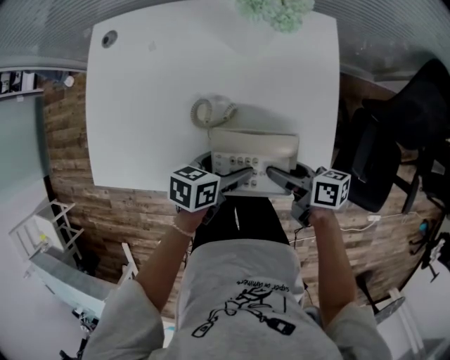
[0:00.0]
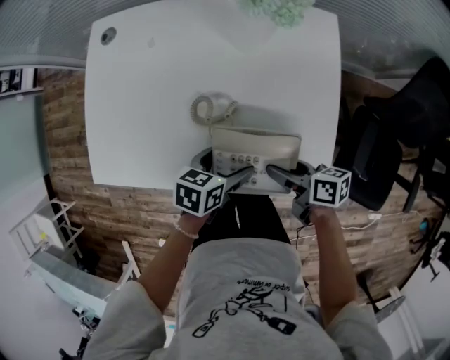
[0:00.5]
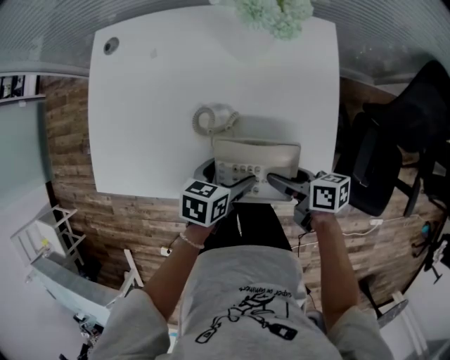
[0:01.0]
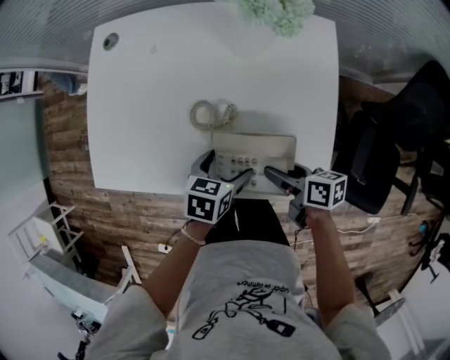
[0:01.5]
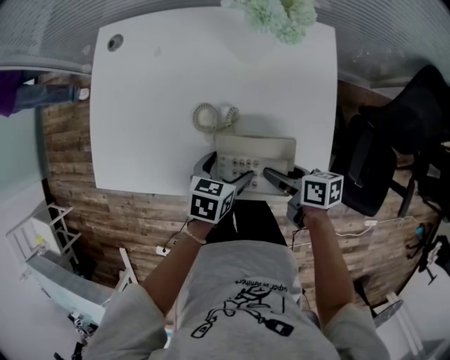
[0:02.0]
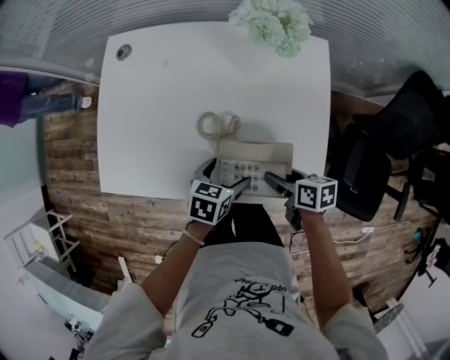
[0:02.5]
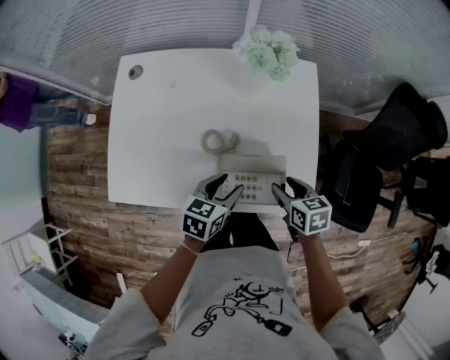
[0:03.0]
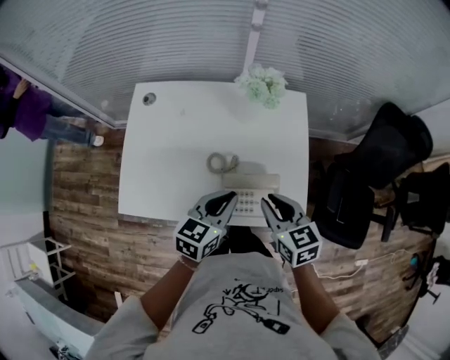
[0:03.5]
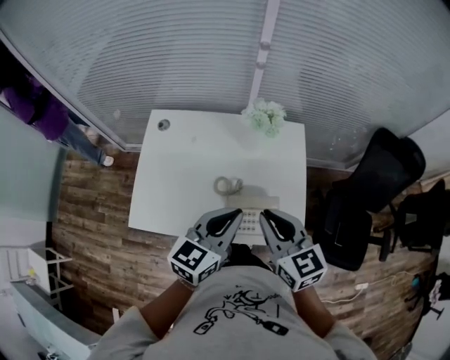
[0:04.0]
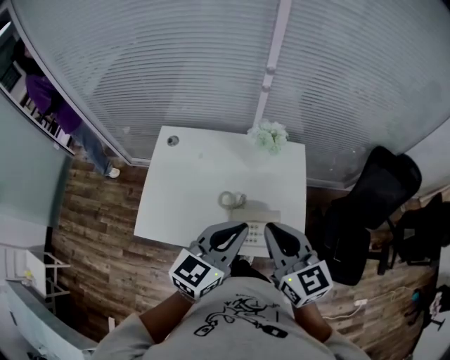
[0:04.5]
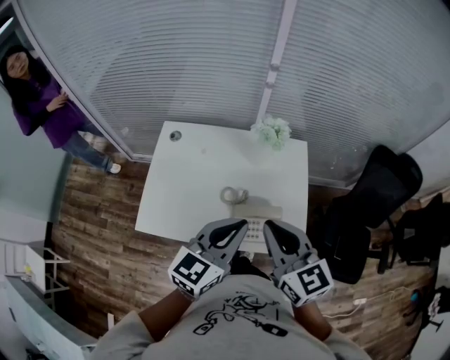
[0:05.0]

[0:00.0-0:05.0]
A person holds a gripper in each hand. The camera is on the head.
0:00.0 to 0:02.5: The right gripper changes its angle by roughly 20 degrees.
0:02.5 to 0:05.0: Both grippers move upward, roughly 40 cm. The left gripper angles its fingers upward, by roughly 40 degrees, and closes; the right gripper tilts its fingers approximately 30 degrees upward, and closes its fingers.

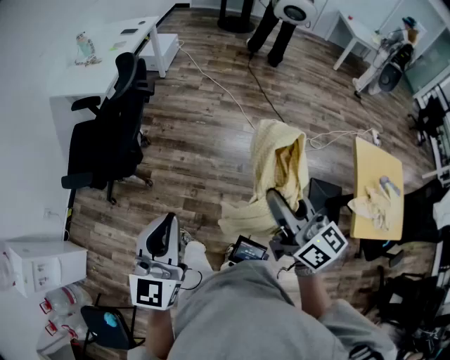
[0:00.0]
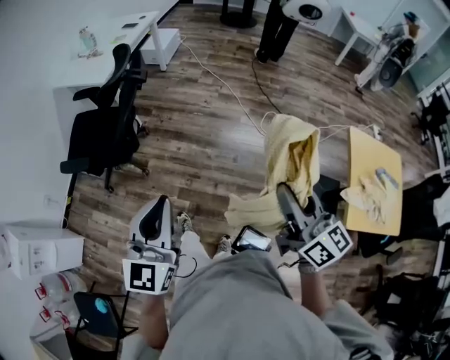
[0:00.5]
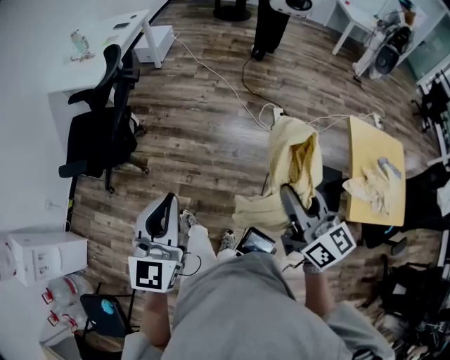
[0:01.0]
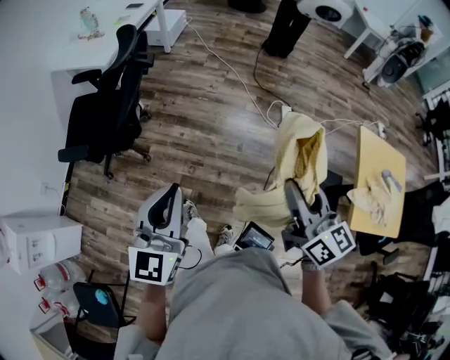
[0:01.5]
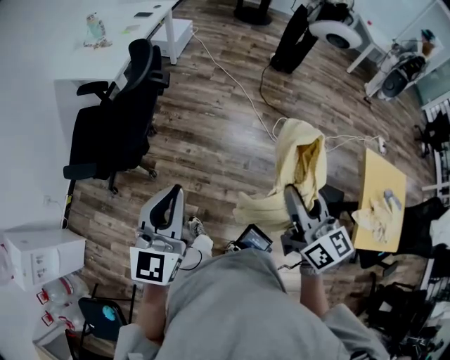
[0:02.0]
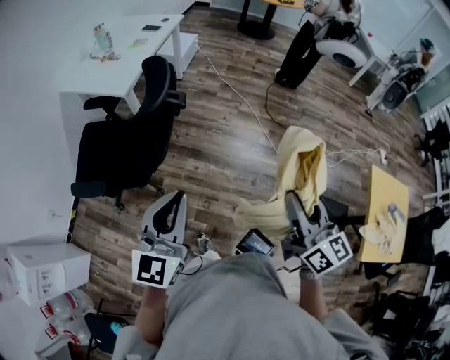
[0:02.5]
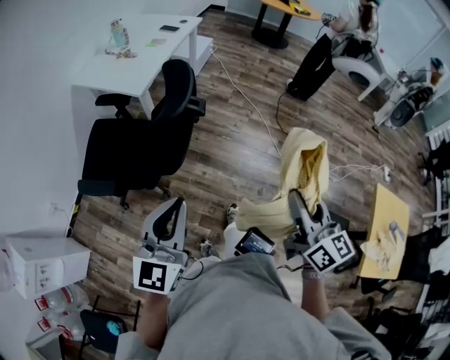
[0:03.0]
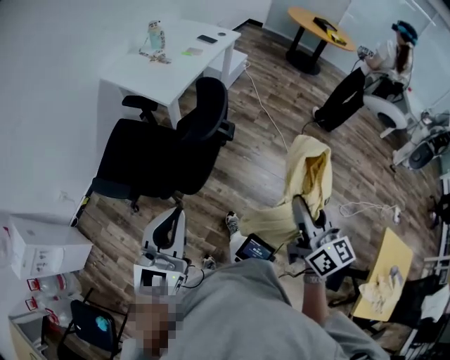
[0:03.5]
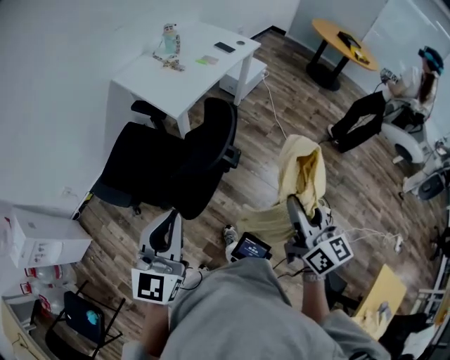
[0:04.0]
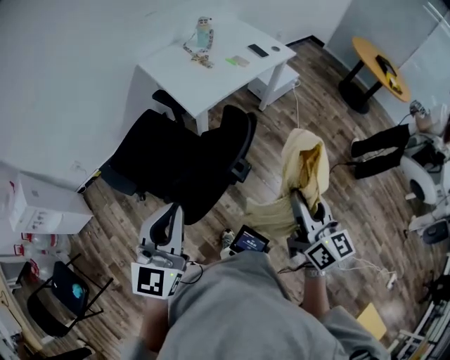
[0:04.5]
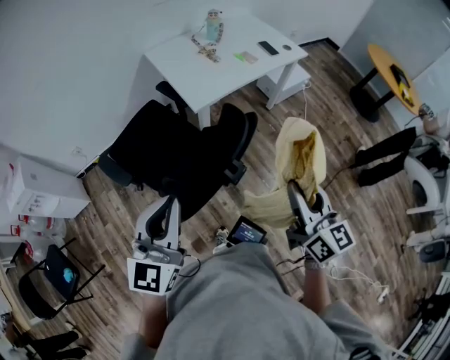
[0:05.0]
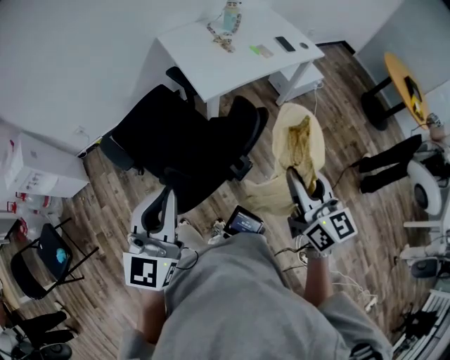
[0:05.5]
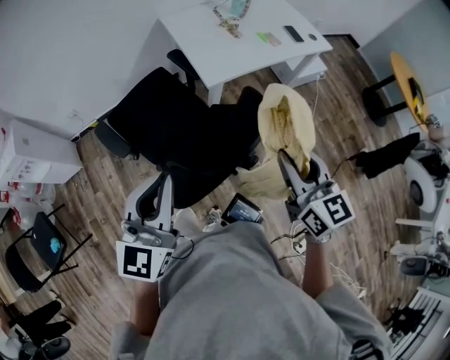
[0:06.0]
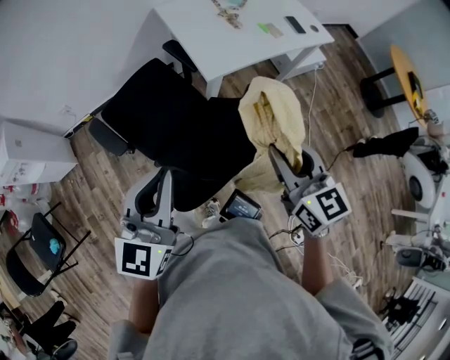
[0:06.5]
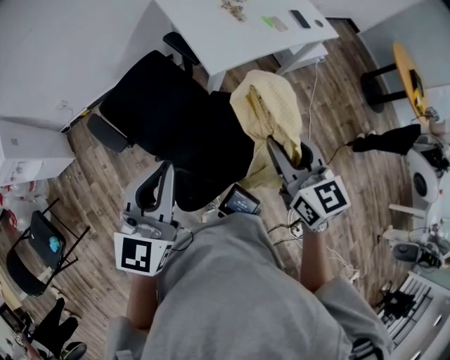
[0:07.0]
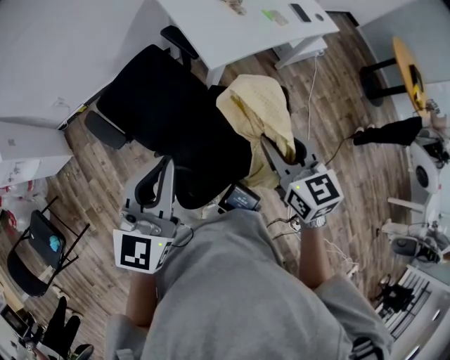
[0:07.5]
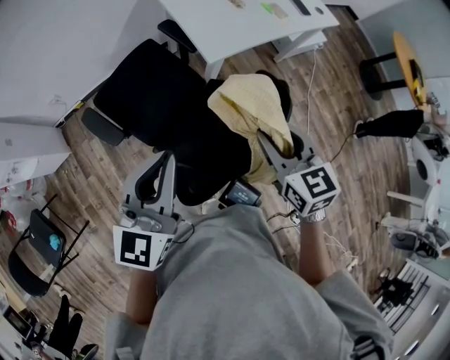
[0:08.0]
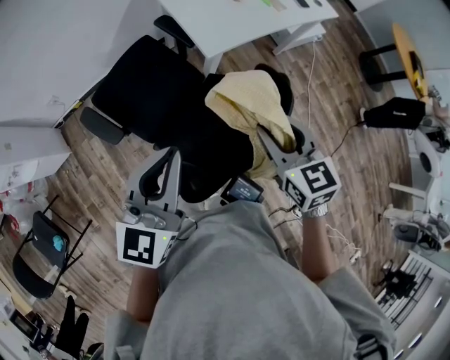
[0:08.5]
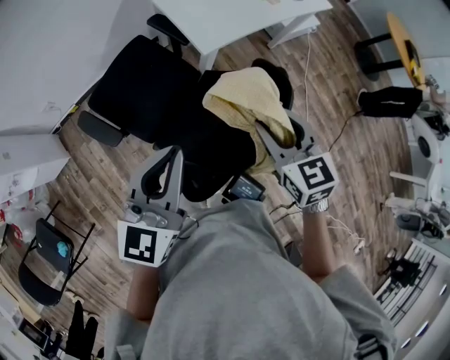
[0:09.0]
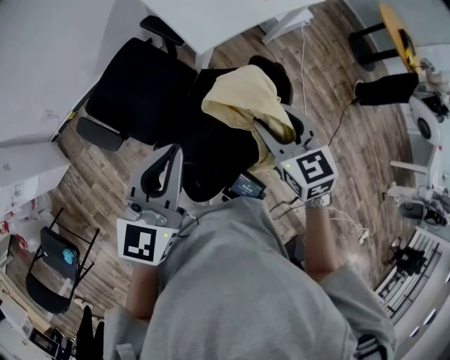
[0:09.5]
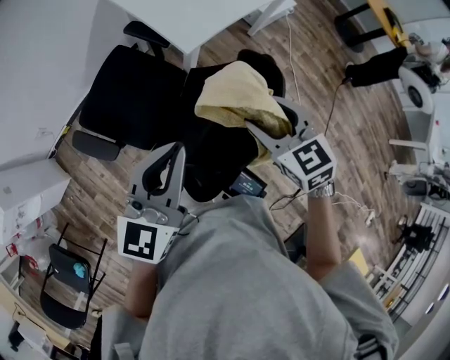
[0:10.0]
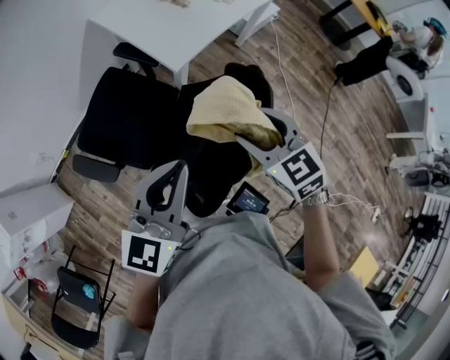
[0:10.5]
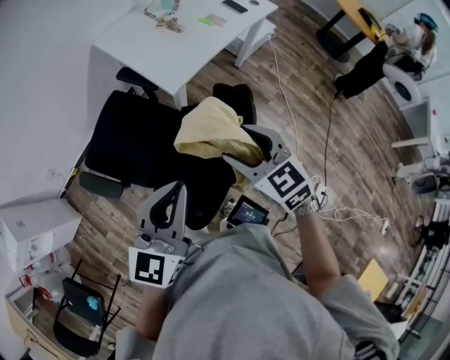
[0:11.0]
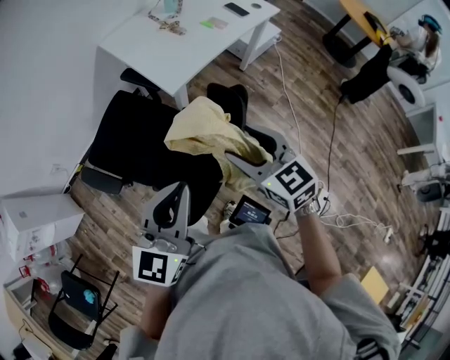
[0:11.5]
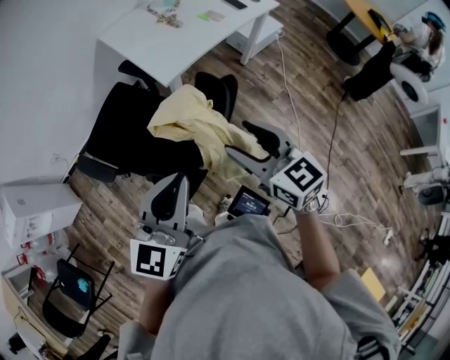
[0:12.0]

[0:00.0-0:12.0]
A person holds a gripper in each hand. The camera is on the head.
0:00.0 to 0:02.0: The right gripper is displaced forward by about 5 cm, while the left gripper travels forward by approximately 10 cm.
0:02.0 to 0:04.0: The left gripper heads forward and to the left, covering roughly 25 cm, and changes its angle by roughly 20 degrees, while the right gripper moves forward, approximately 35 cm, and rotates about 20 degrees.
0:04.0 to 0:06.0: The right gripper shifts by roughly 25 cm, and swivels about 30 degrees. The left gripper moves approximately 10 cm, and rotates about 20 degrees.
0:06.0 to 0:08.0: The left gripper shifts some 5 cm forward. The right gripper is displaced to the left, downward and forward by approximately 10 cm.
0:08.0 to 0:10.0: The grippers stay close to where they were, moving slightly.
0:10.0 to 0:12.0: The left gripper is displaced to the right and backward by about 15 cm. Meanwhile the right gripper moves to the right, backward and upward, roughly 10 cm, and swivels roughly 20 degrees.

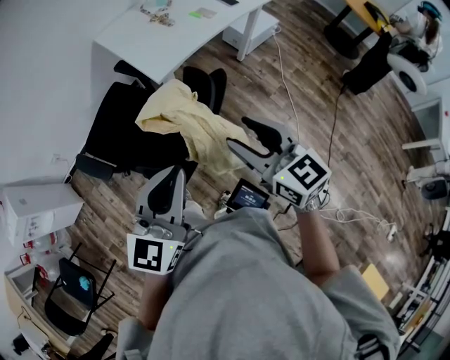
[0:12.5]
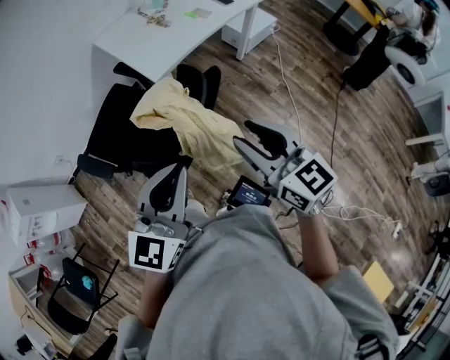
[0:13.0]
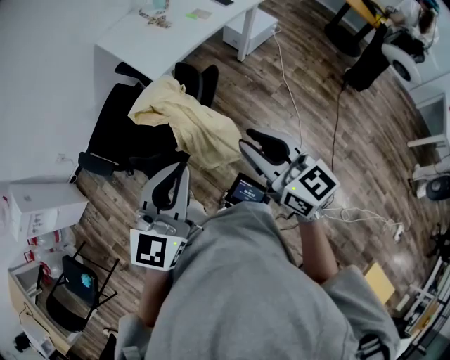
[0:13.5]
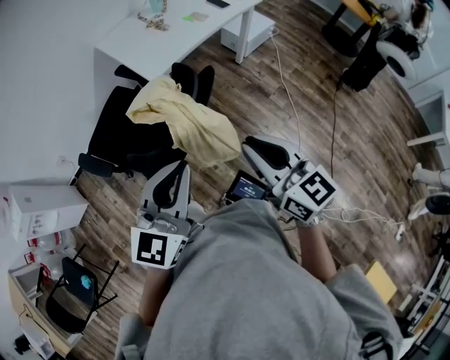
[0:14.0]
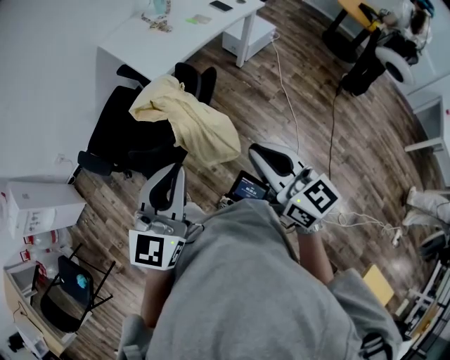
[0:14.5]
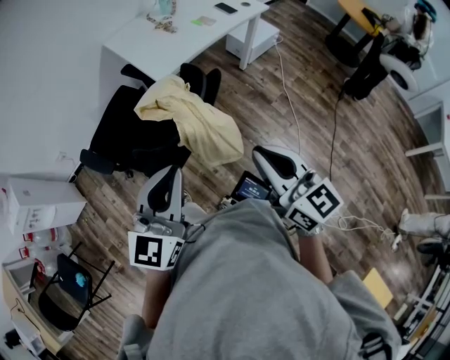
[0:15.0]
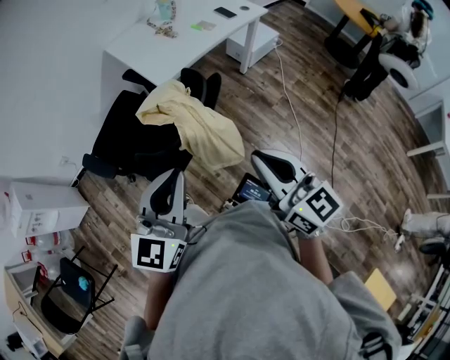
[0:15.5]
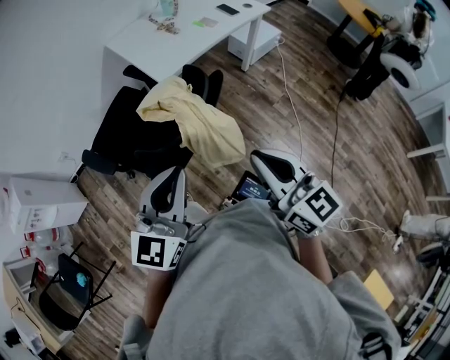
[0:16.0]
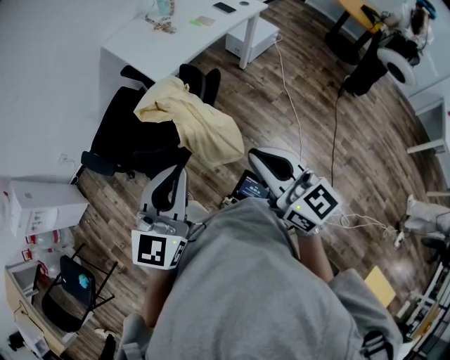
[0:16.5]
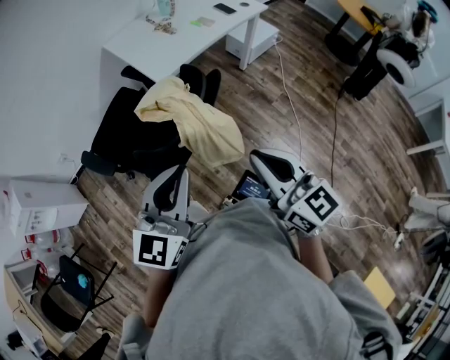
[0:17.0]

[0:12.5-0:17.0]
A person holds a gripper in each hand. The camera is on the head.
0:12.5 to 0:14.5: The right gripper shifts approximately 10 cm backward and to the right, and closes up. Meanwhile the left gripper moves backward, roughly 5 cm.
0:14.5 to 0:17.0: The grippers move only a little.

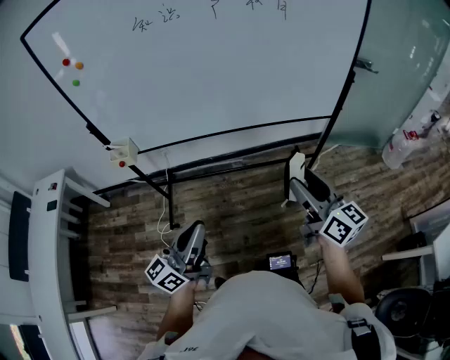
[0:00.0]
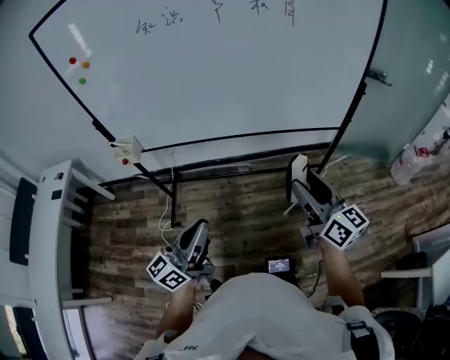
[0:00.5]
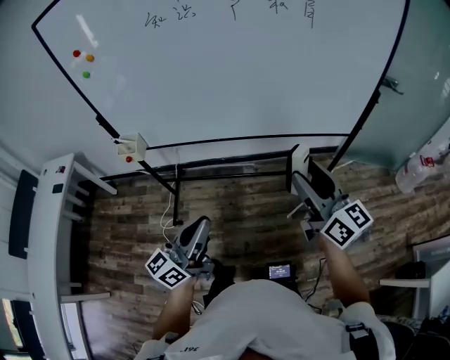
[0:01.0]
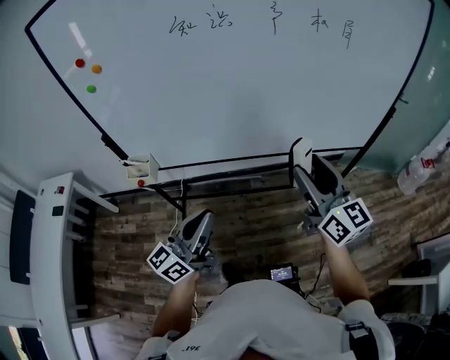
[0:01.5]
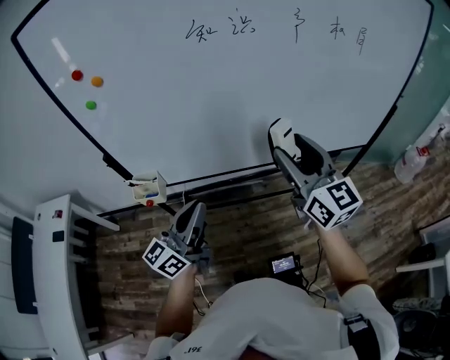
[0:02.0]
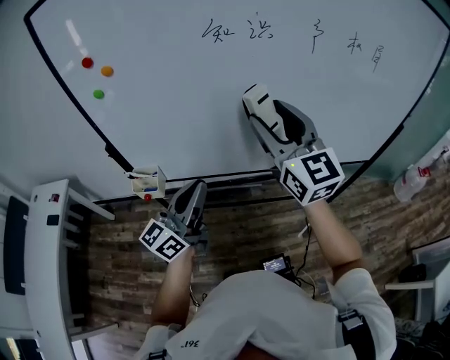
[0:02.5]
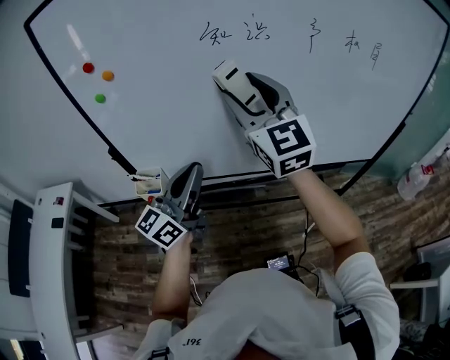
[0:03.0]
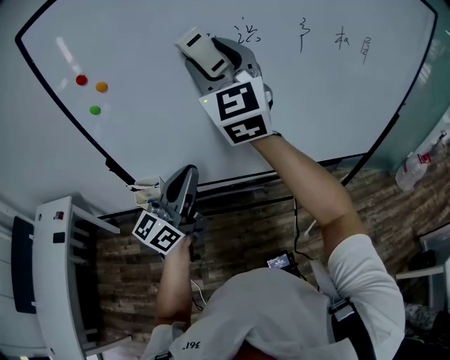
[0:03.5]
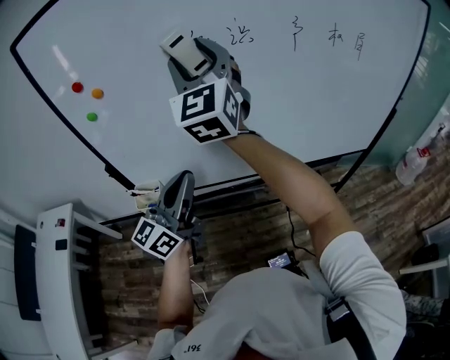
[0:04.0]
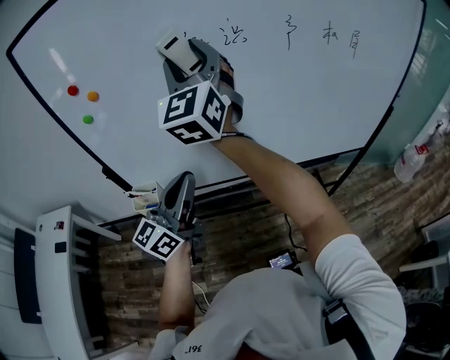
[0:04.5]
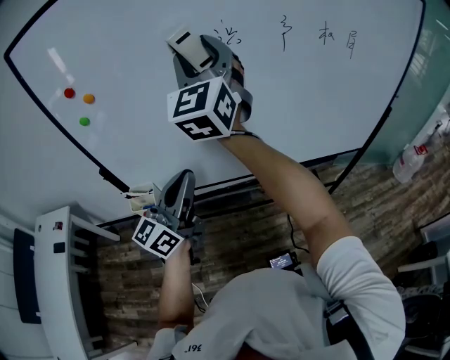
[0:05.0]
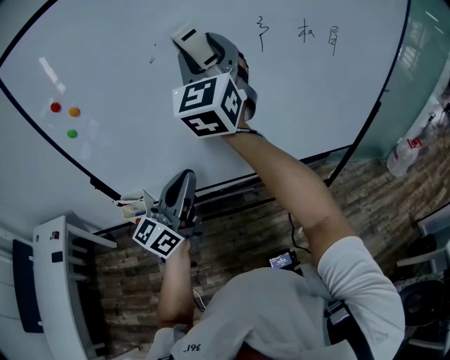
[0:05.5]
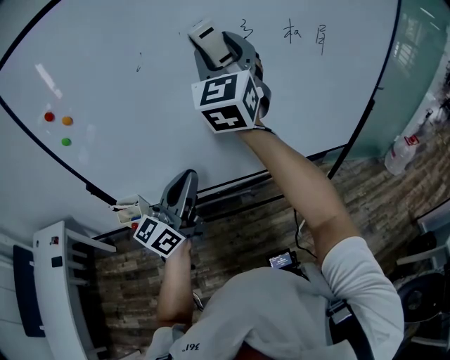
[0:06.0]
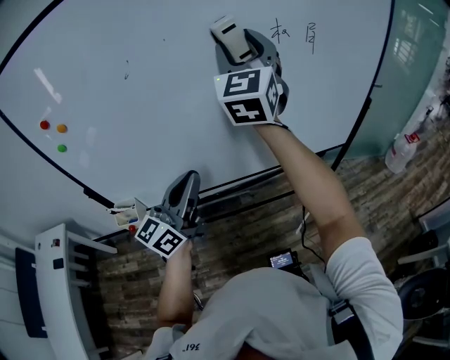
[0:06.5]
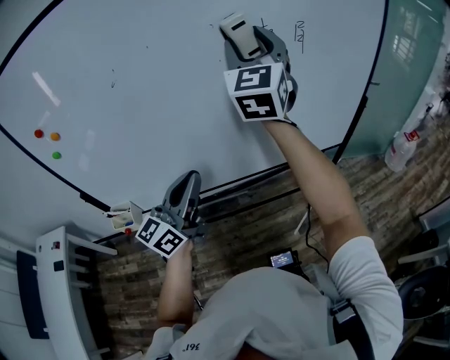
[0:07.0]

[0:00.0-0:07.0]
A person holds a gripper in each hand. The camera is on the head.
0:00.0 to 0:02.0: The right gripper goes some 35 cm to the left, forward and upward, and rotates some 20 degrees. Meanwhile the left gripper shifts about 30 cm forward and to the left.
0:02.0 to 0:03.5: The left gripper travels upward and forward by some 10 cm. The right gripper shifts roughly 30 cm upward, to the left and forward, and swivels roughly 30 degrees.
0:03.5 to 0:05.0: There are only small adjustments of the grippers.
0:05.0 to 0:07.0: The left gripper is displaced to the right and forward by approximately 15 cm; the right gripper goes about 25 cm to the right.
